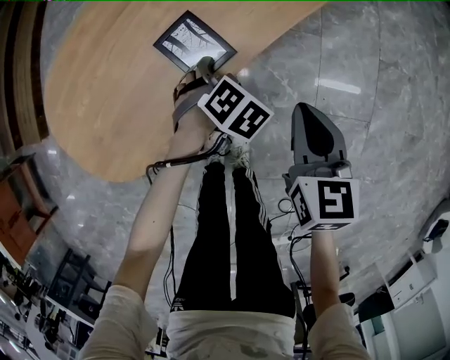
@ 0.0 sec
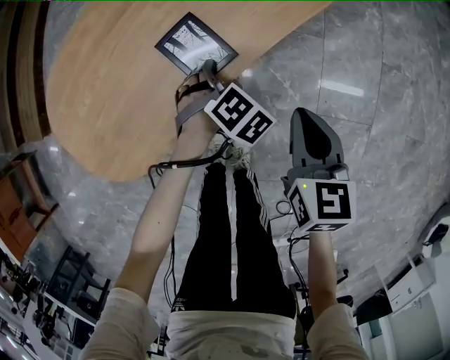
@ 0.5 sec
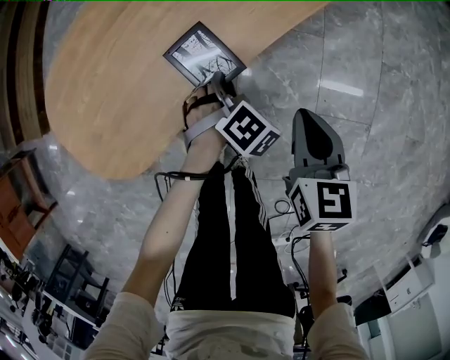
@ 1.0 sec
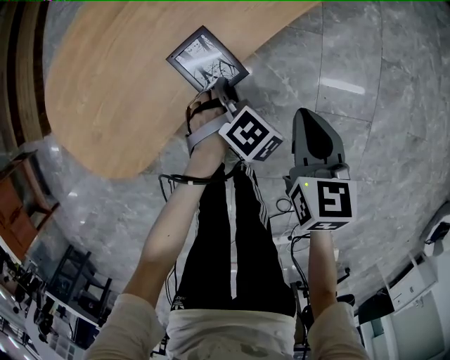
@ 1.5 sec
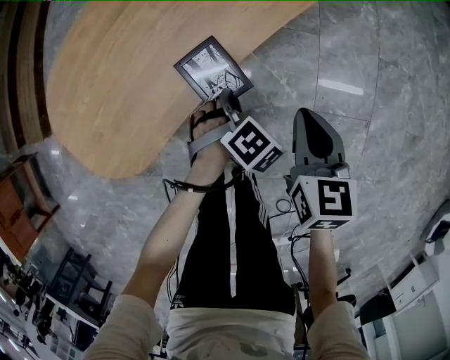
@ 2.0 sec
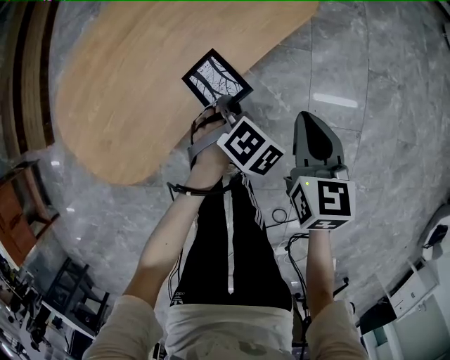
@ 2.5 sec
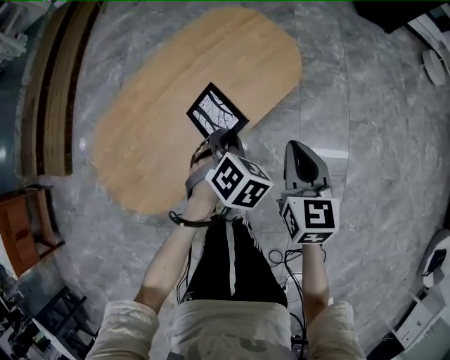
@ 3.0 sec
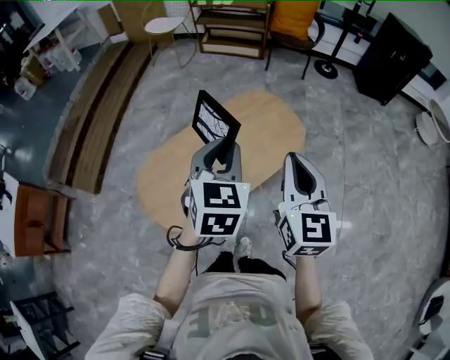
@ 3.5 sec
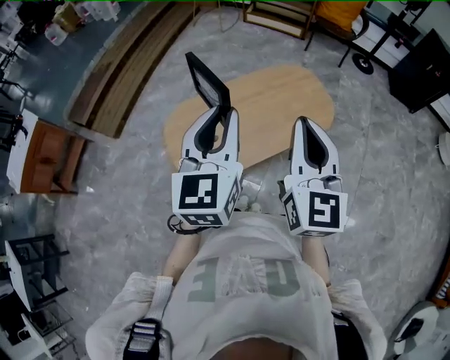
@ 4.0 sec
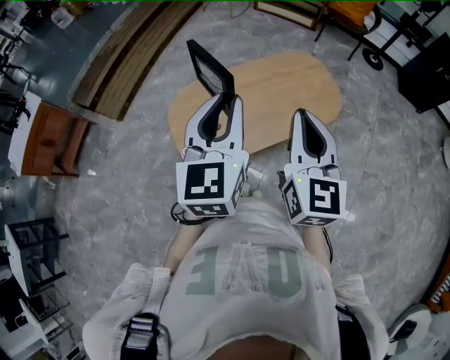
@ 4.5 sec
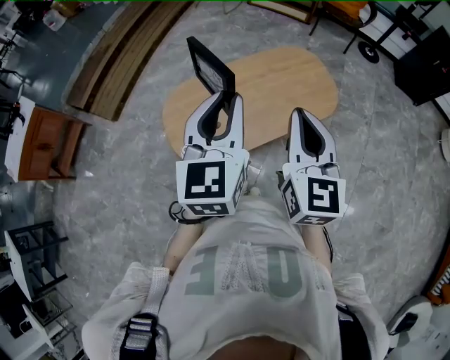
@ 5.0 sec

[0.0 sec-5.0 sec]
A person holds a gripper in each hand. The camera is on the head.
0.0 sec to 2.5 sec: The left gripper moves upward and backward, about 10 cm, and closes up.
2.5 sec to 5.0 sec: The left gripper goes approximately 60 cm upward, and angles its fingers upward, by some 60 degrees. The right gripper heads upward and to the left, covering approximately 50 cm, and rotates approximately 40 degrees.

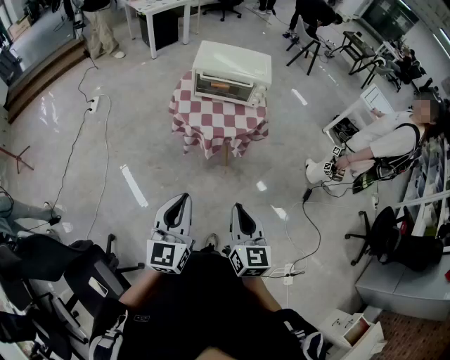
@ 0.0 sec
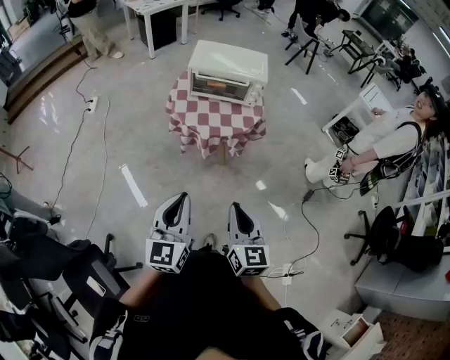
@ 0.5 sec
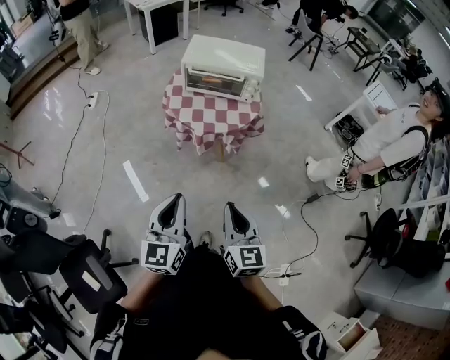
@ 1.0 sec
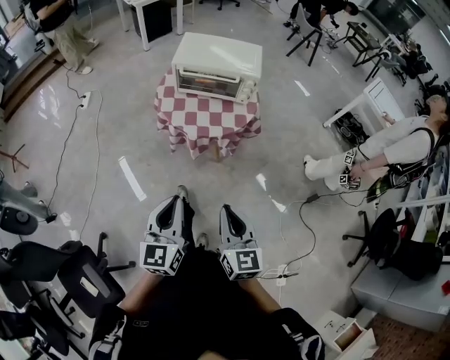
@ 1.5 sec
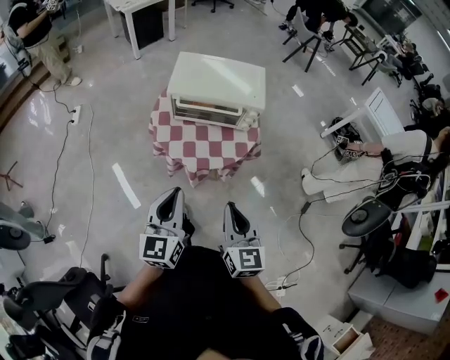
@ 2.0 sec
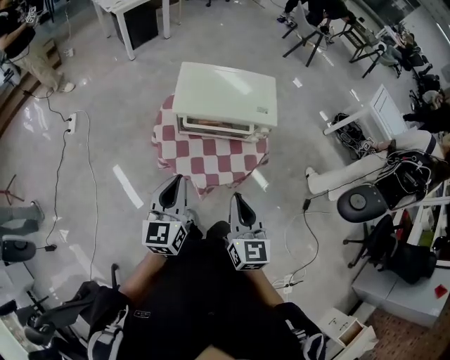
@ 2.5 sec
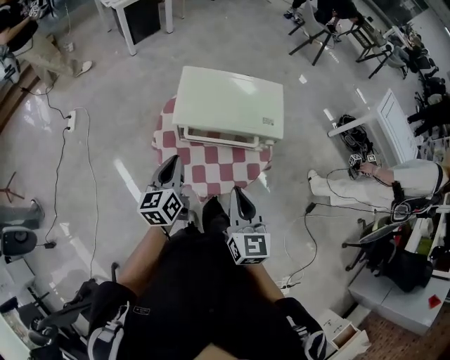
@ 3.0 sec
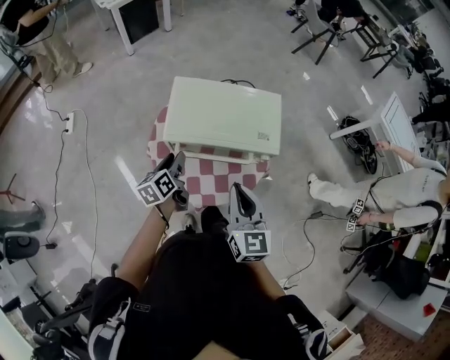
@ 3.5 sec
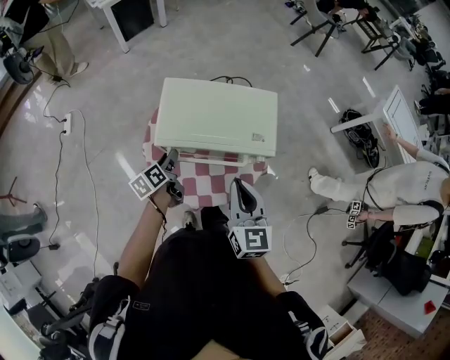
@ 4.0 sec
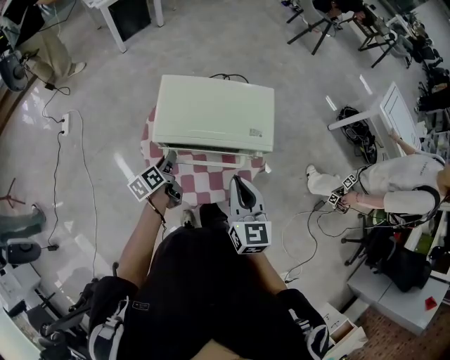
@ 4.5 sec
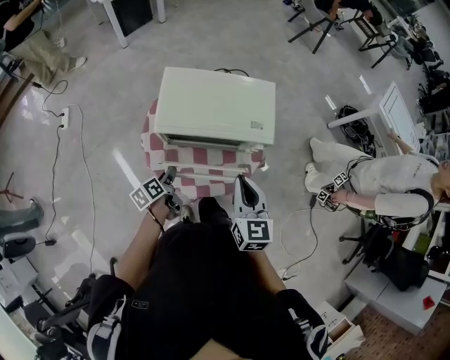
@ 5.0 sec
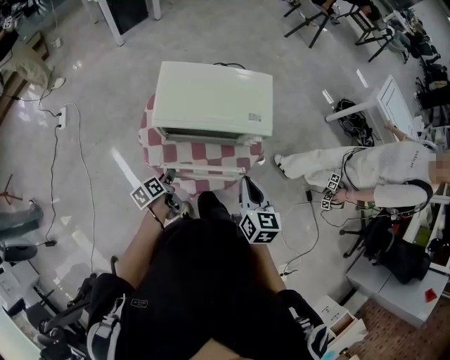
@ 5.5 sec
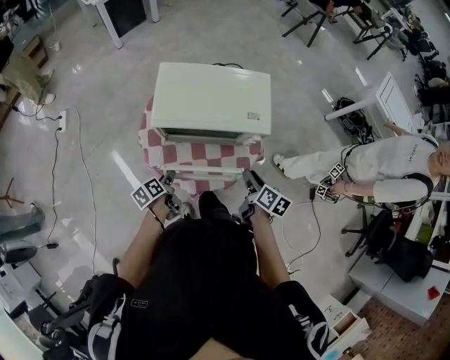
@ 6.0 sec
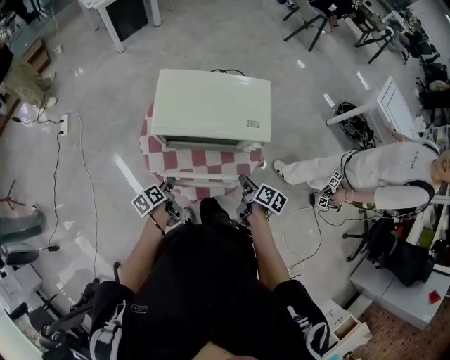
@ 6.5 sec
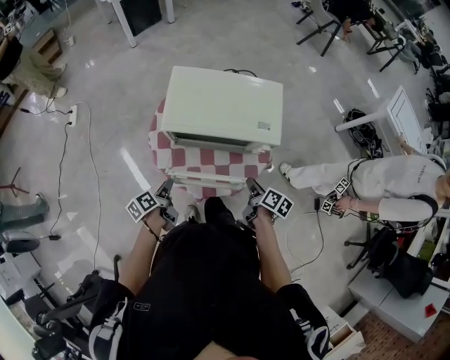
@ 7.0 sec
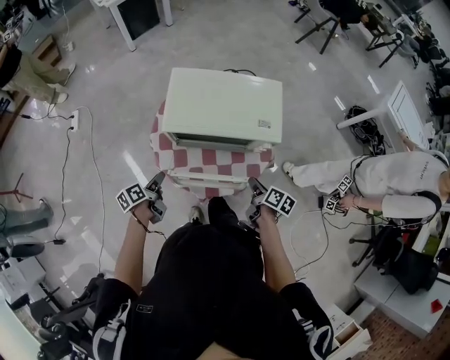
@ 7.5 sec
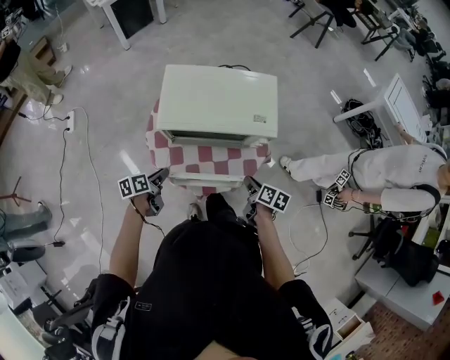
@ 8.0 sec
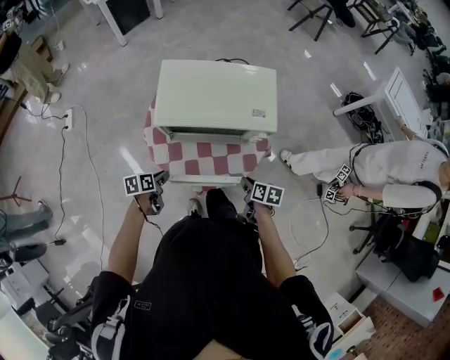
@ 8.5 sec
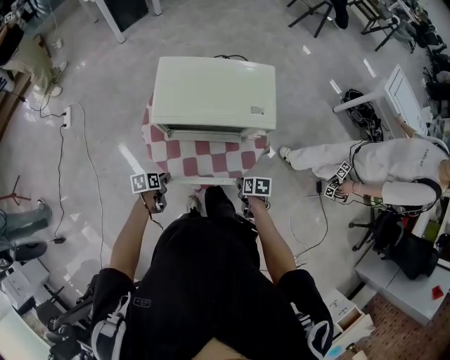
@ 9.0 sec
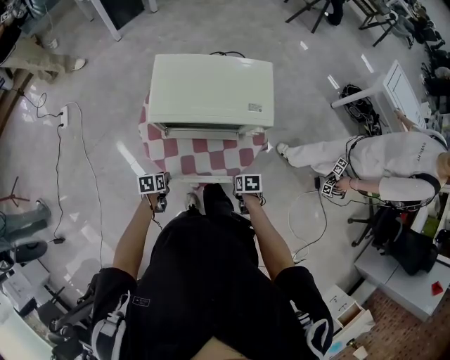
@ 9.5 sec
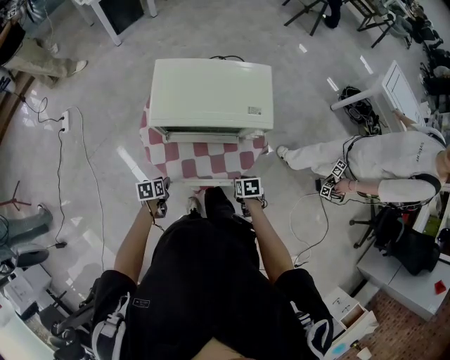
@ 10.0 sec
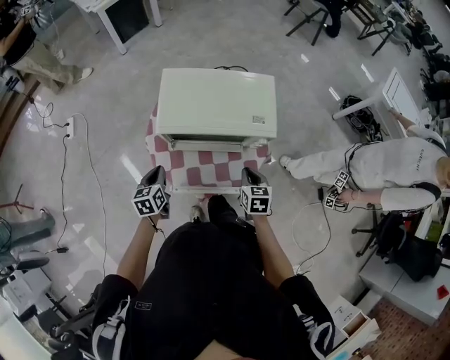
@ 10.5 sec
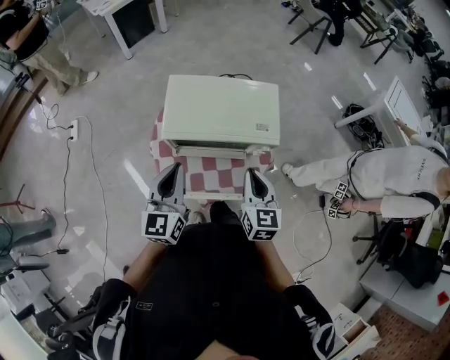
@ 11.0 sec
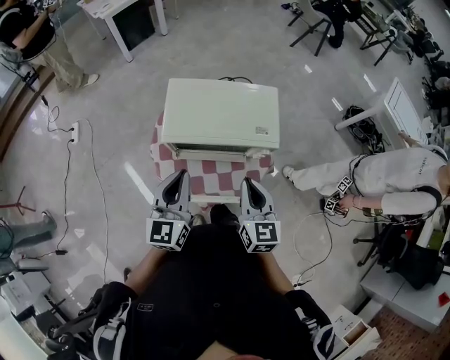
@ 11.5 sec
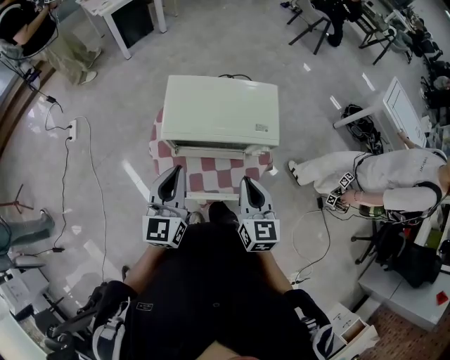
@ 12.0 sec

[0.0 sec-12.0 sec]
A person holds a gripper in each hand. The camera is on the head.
0.0 sec to 2.0 sec: Both grippers travel together forward, approximately 25 cm.
2.0 sec to 4.0 sec: The right gripper moves forward, some 35 cm. Meanwhile the left gripper moves forward and downward, approximately 50 cm, rolls counterclockwise, seen from behind, by about 40 degrees, and opens.
4.0 sec to 6.0 sec: The left gripper is displaced backward and downward by some 15 cm. The right gripper is displaced downward and to the right by approximately 20 cm, rolls clockwise, seen from behind, by about 40 degrees, and opens its fingers.
6.0 sec to 8.0 sec: The right gripper goes about 5 cm downward.
8.0 sec to 10.0 sec: The grippers both shift downward by about 10 cm. The right gripper swivels about 40 degrees, while the left gripper swivels about 30 degrees.
10.0 sec to 12.0 sec: Both grippers travel together upward, approximately 35 cm. The left gripper points its fingers roughly 60 degrees further upward, and closes; the right gripper points its fingers some 50 degrees further upward, and closes.

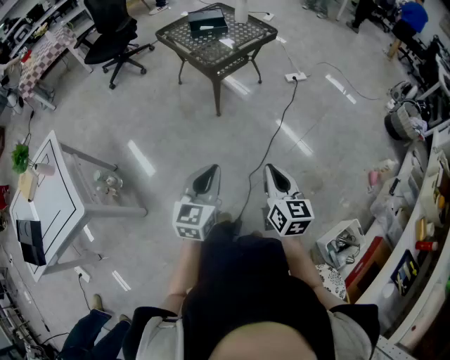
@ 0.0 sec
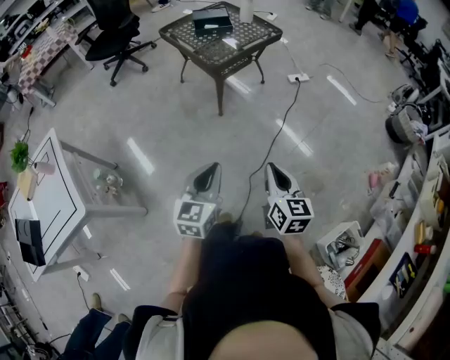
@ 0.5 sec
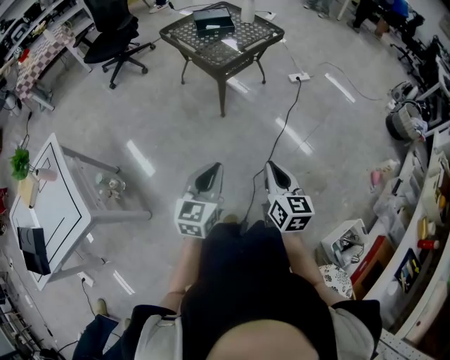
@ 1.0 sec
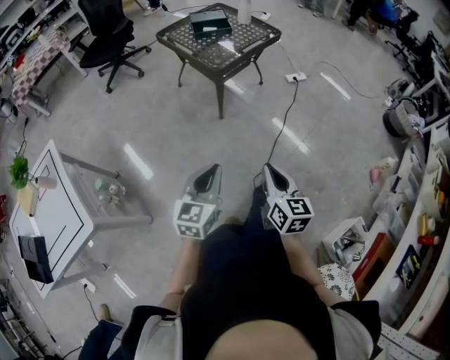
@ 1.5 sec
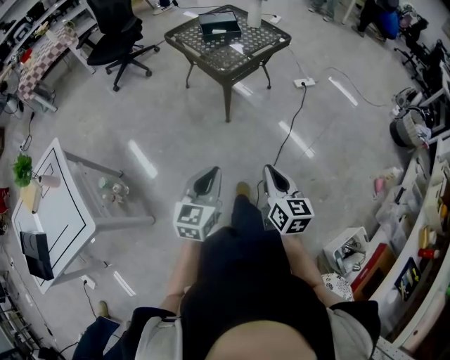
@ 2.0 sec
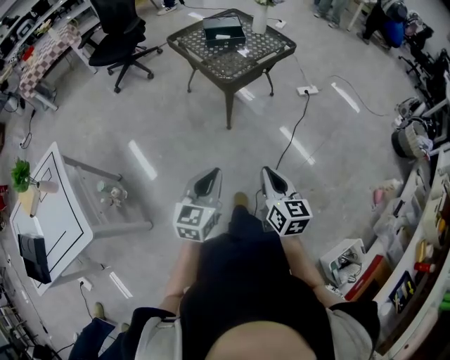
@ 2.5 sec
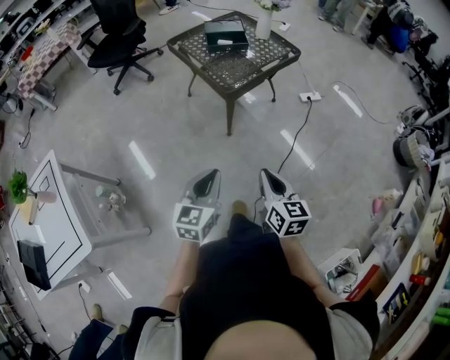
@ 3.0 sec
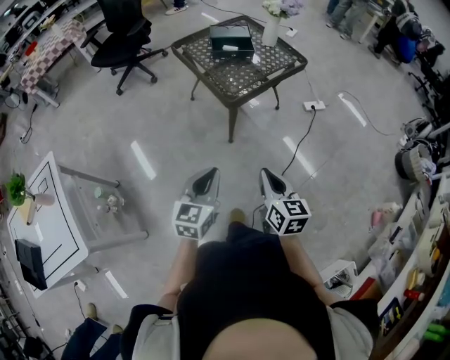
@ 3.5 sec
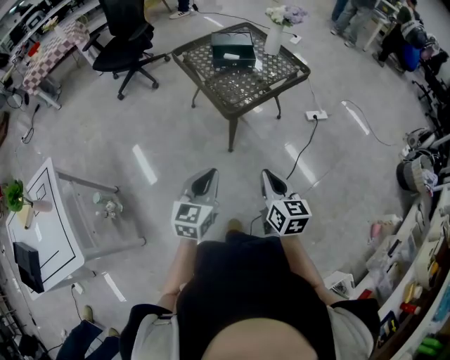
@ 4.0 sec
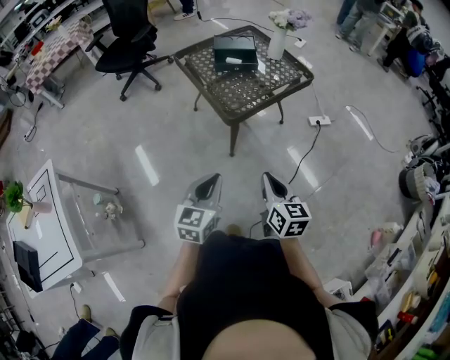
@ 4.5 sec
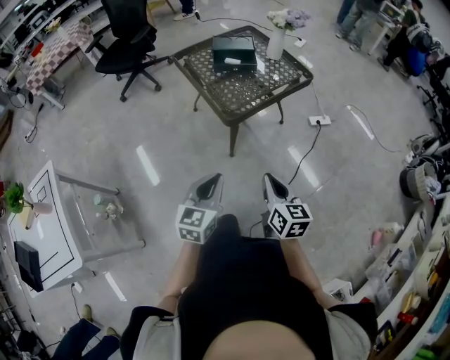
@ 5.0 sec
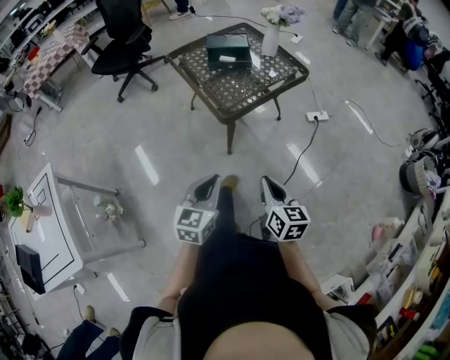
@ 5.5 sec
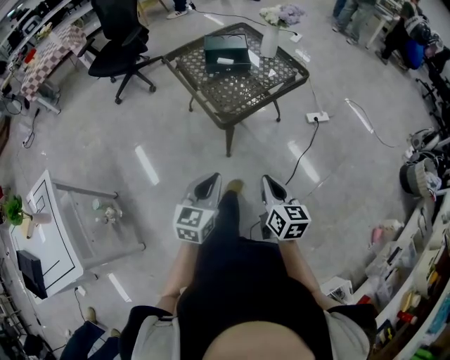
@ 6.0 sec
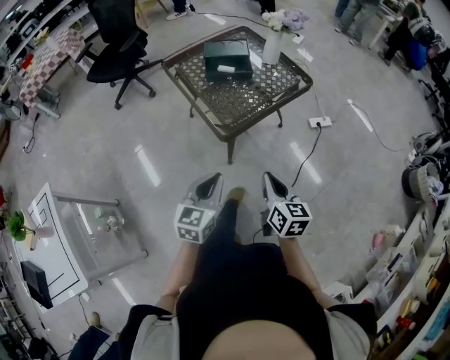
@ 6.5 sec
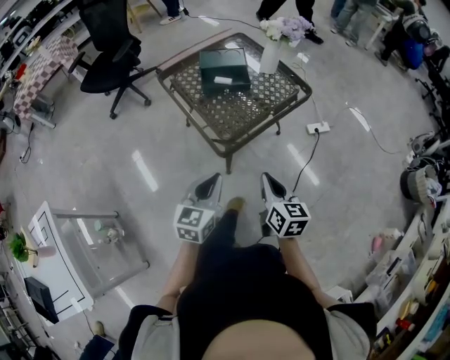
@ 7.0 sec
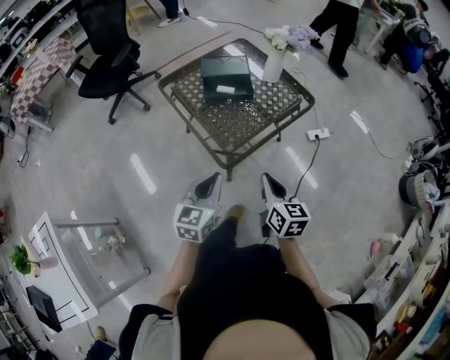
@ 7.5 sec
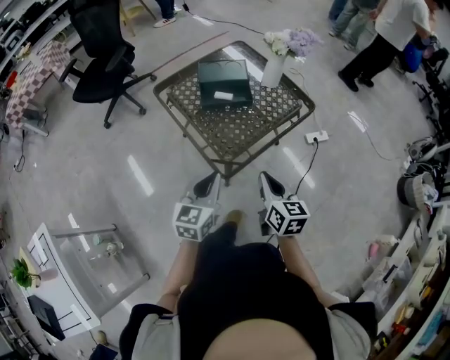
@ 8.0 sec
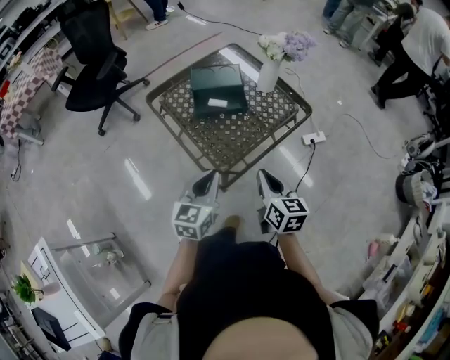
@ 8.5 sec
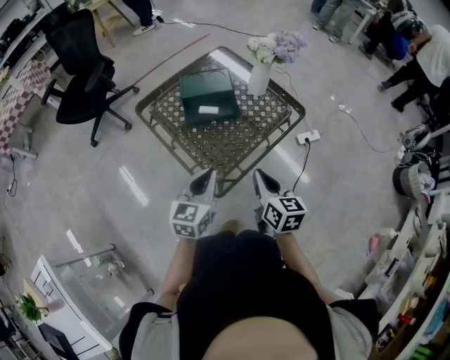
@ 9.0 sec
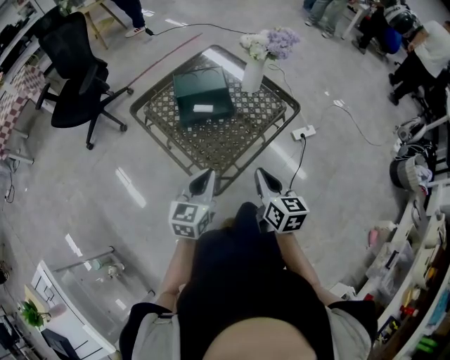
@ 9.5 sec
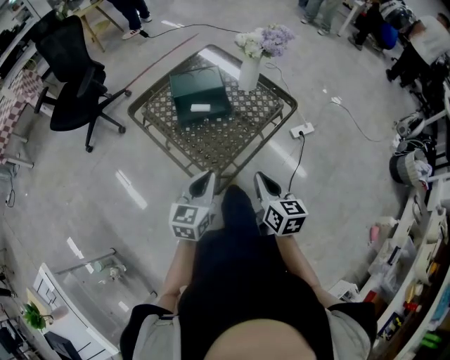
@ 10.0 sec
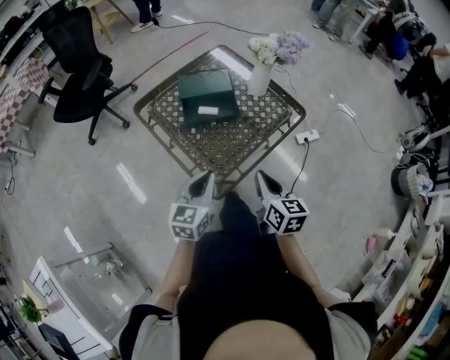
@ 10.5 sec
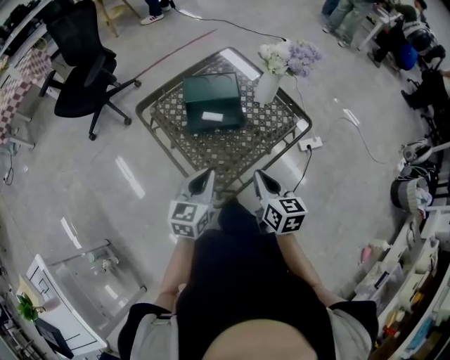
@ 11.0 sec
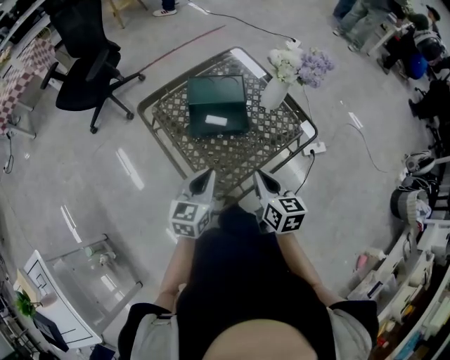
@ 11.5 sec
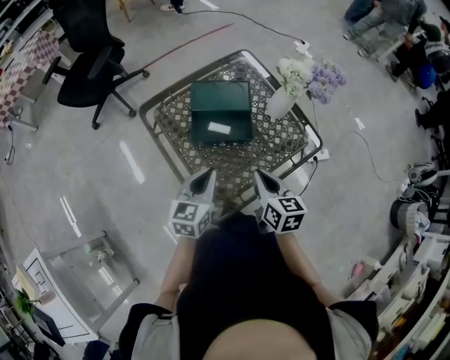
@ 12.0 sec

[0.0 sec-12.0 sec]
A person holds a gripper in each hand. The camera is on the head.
0.0 sec to 2.0 sec: Both grippers travel together to the left and forward, some 10 cm.
2.0 sec to 4.0 sec: Both grippers travel together forward, about 25 cm.
4.0 sec to 6.0 sec: The two grippers go about 5 cm forward.
6.0 sec to 8.0 sec: Both grippers move forward, some 25 cm.
8.0 sec to 10.0 sec: The two grippers go roughly 5 cm forward.
10.0 sec to 12.0 sec: The two grippers go approximately 15 cm forward.
